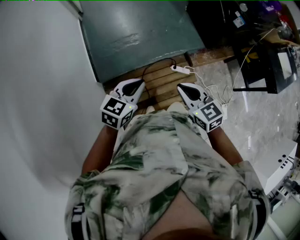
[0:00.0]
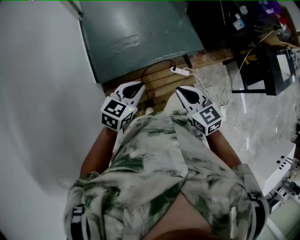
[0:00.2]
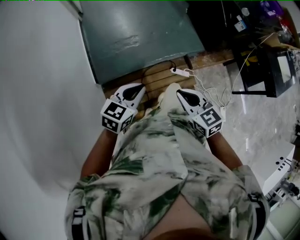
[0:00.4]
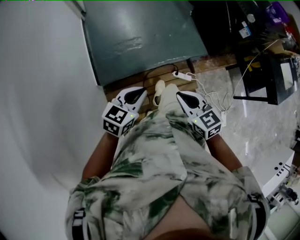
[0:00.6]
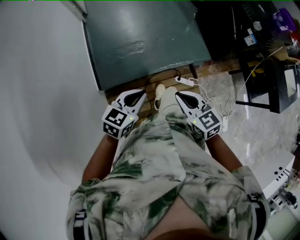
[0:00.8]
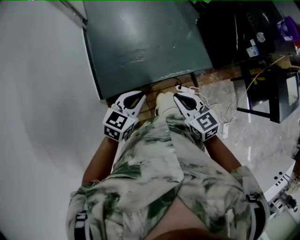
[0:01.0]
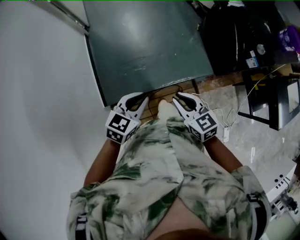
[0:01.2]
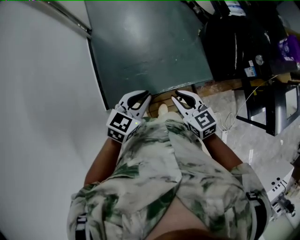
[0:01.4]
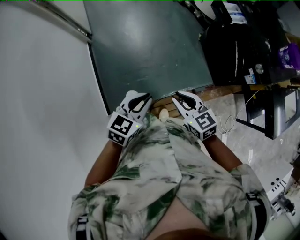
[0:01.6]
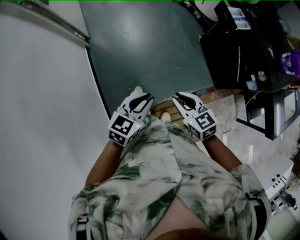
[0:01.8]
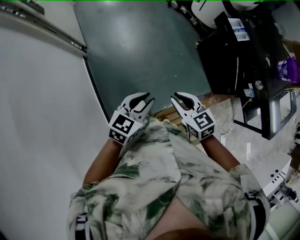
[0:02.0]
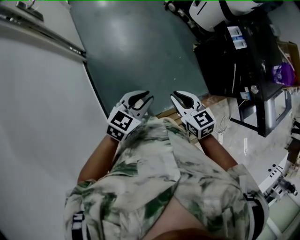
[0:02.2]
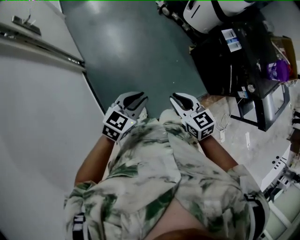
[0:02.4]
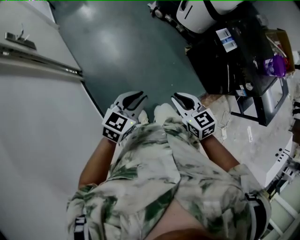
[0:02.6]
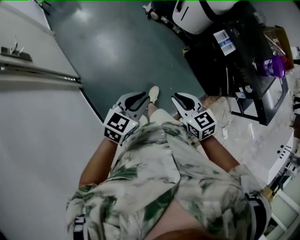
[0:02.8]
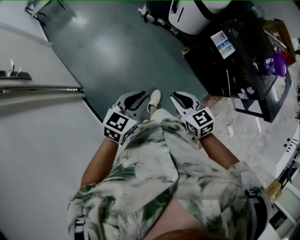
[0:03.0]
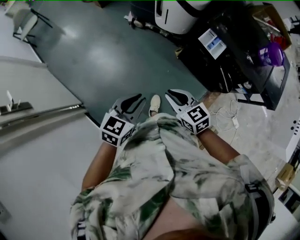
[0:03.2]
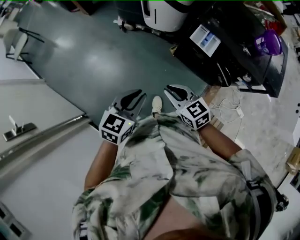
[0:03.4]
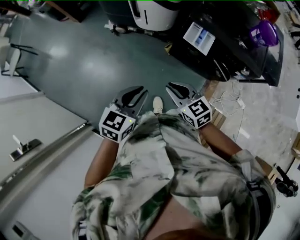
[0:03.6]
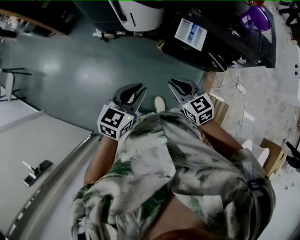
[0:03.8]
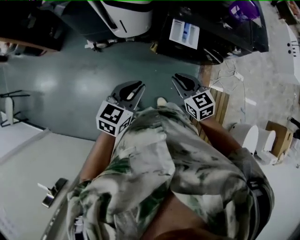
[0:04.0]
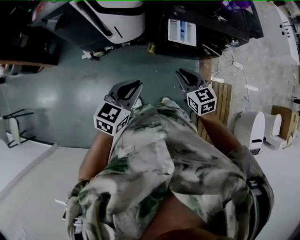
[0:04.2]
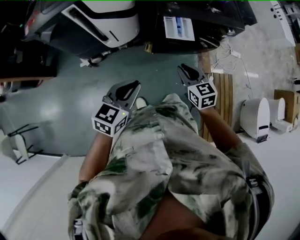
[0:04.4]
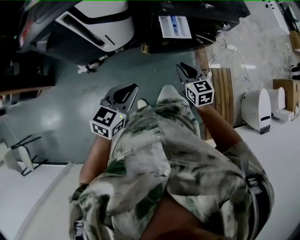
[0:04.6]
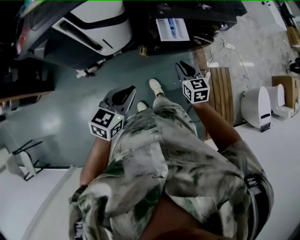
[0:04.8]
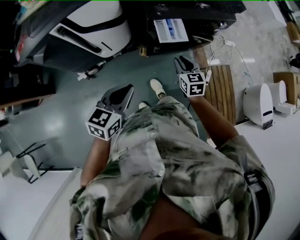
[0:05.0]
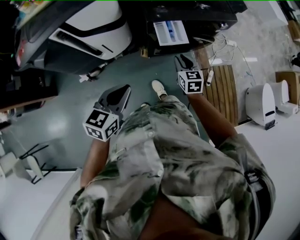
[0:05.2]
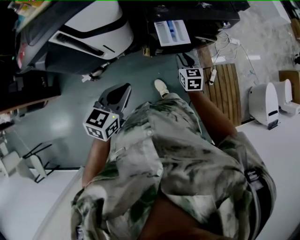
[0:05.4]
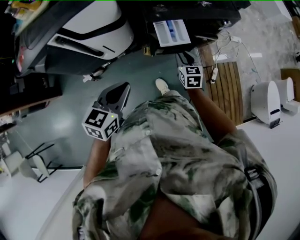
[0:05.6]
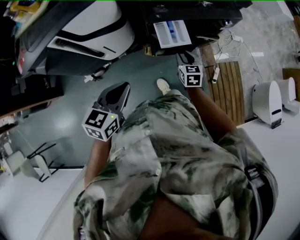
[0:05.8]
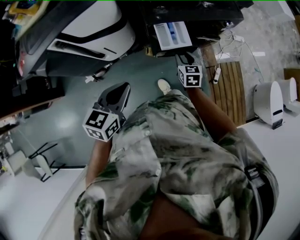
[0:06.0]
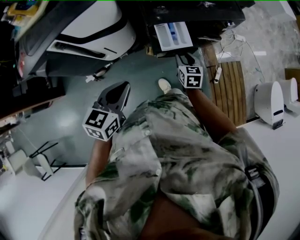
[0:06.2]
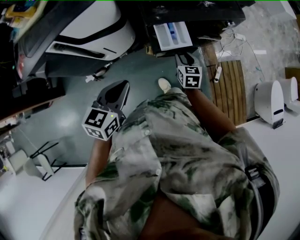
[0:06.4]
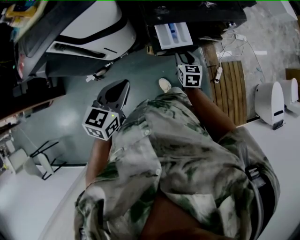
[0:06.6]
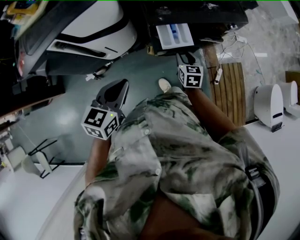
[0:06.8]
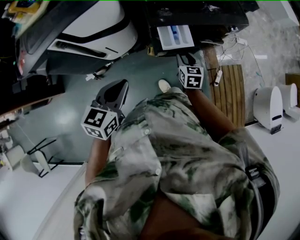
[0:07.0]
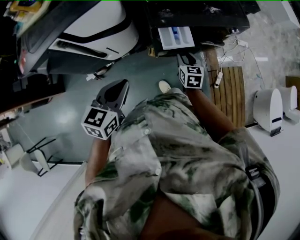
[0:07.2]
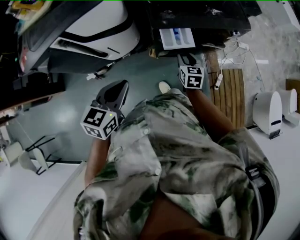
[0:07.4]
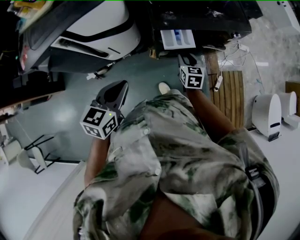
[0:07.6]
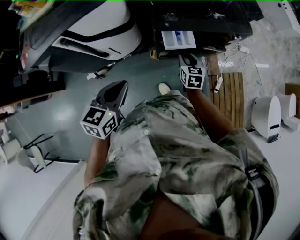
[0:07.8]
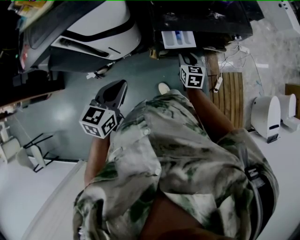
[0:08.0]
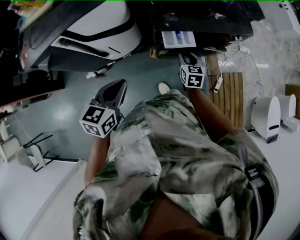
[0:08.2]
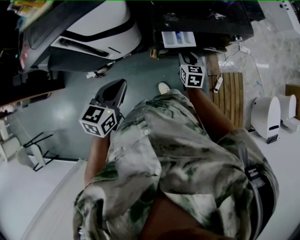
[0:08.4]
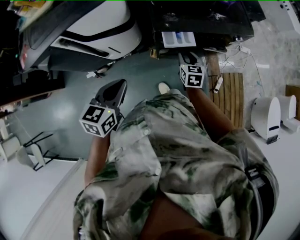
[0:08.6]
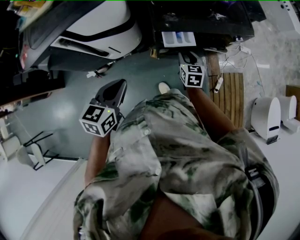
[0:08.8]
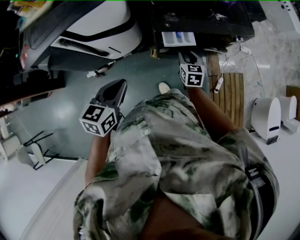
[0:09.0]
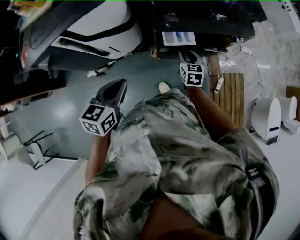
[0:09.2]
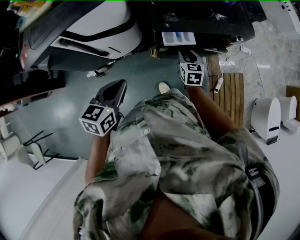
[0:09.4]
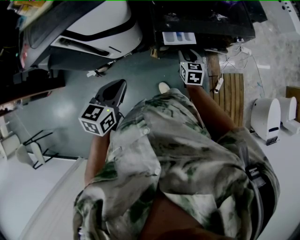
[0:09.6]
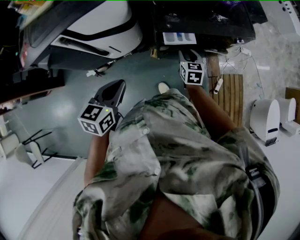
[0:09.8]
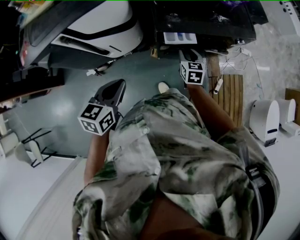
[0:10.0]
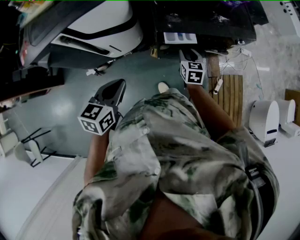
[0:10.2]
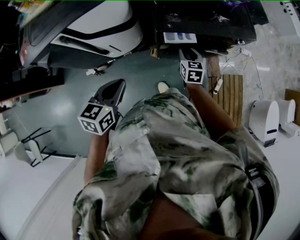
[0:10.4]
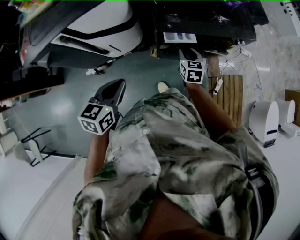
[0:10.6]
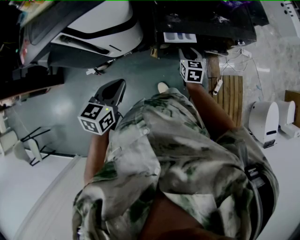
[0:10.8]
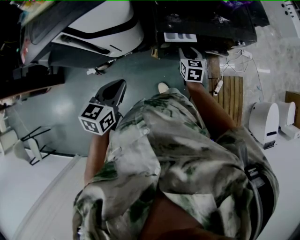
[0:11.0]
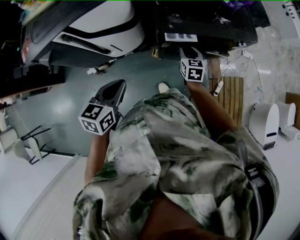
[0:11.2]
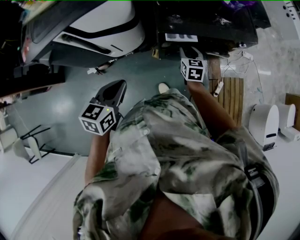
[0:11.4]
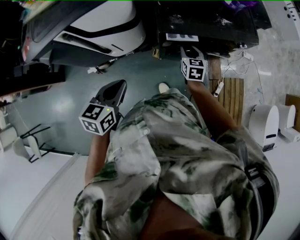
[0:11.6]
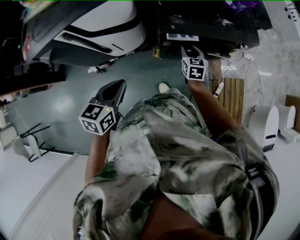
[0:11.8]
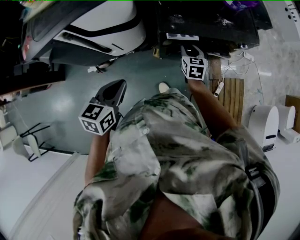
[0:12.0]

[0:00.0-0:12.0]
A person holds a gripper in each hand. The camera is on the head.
0:00.0 to 0:01.6: The grippers both shift forward by some 40 cm.
0:01.6 to 0:03.0: Both grippers are carried forward, approximately 50 cm. The left gripper turns by about 20 degrees. Meanwhile the right gripper swivels roughly 20 degrees.
0:03.0 to 0:04.4: The left gripper shifts by approximately 40 cm, and turns by roughly 50 degrees, while the right gripper ends up about 35 cm from where it was, and turns by some 60 degrees.
0:04.4 to 0:06.0: The right gripper goes some 20 cm forward and downward, and swivels roughly 20 degrees, while the left gripper heads forward, covering approximately 10 cm.
0:06.0 to 0:07.6: The grippers move only a little.
0:07.6 to 0:10.4: The grippers move only a little.
0:10.4 to 0:12.0: The grippers make only small movements.

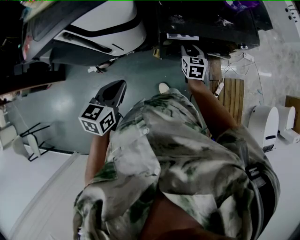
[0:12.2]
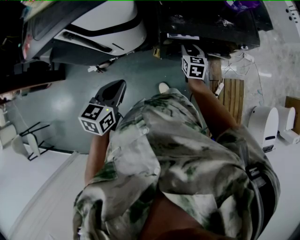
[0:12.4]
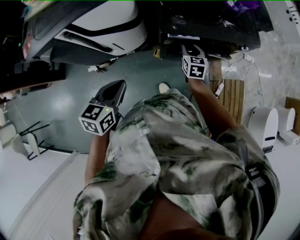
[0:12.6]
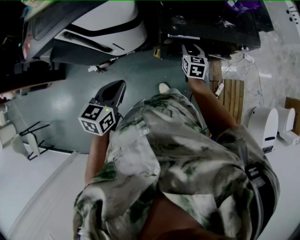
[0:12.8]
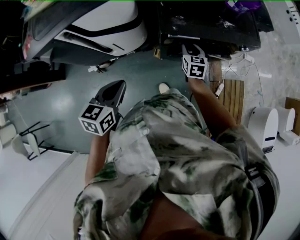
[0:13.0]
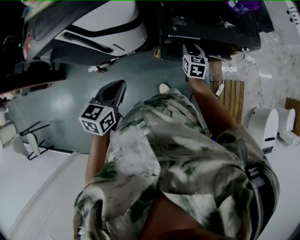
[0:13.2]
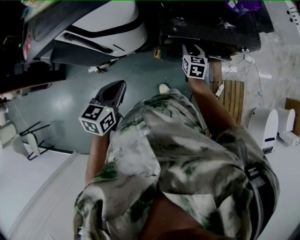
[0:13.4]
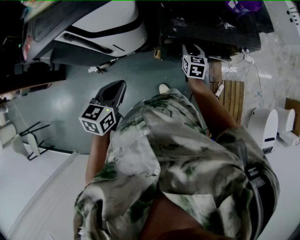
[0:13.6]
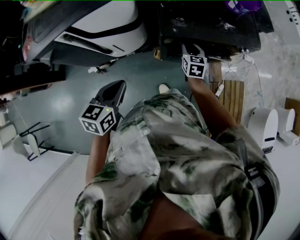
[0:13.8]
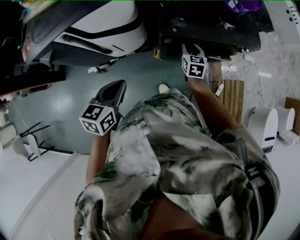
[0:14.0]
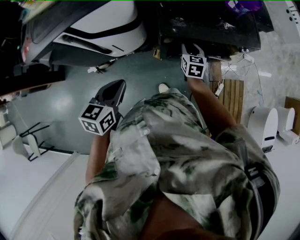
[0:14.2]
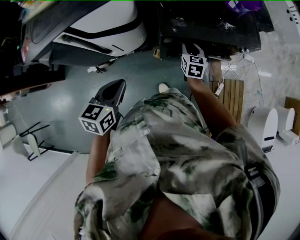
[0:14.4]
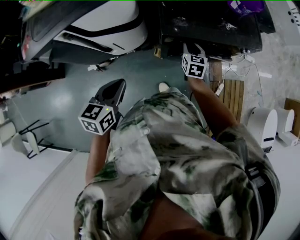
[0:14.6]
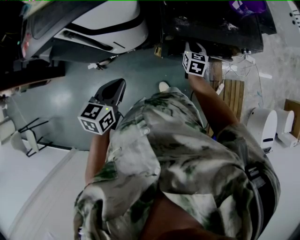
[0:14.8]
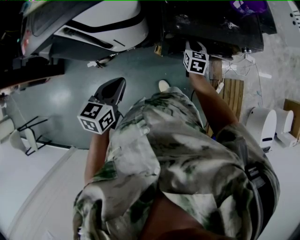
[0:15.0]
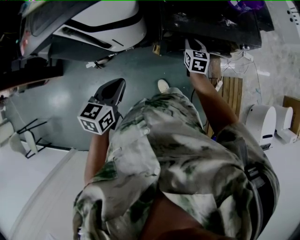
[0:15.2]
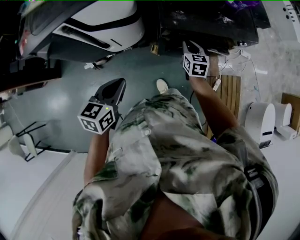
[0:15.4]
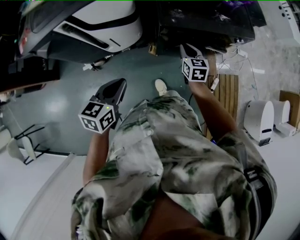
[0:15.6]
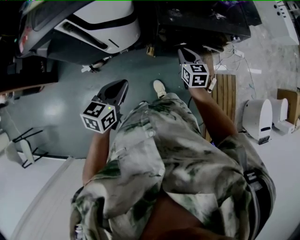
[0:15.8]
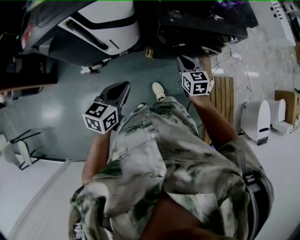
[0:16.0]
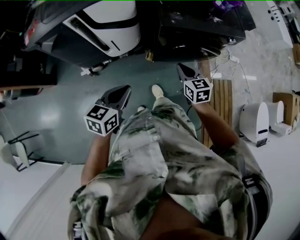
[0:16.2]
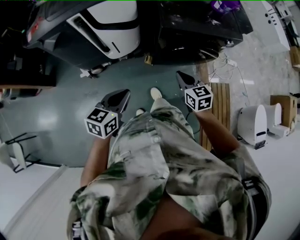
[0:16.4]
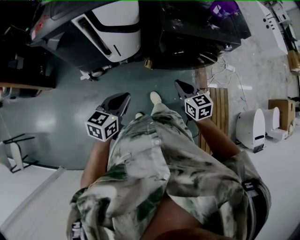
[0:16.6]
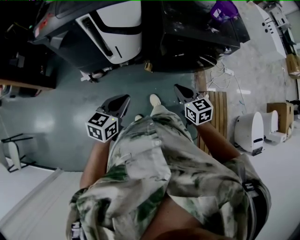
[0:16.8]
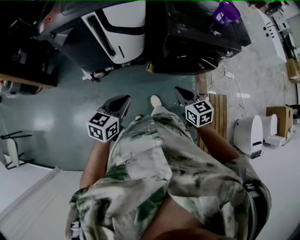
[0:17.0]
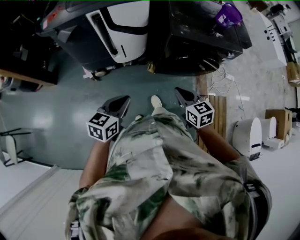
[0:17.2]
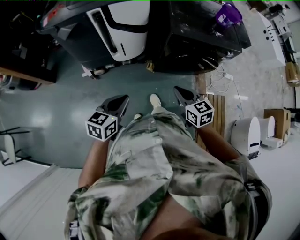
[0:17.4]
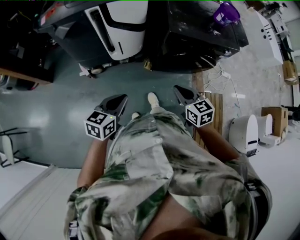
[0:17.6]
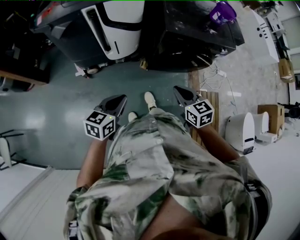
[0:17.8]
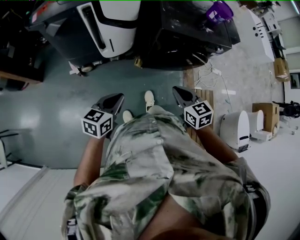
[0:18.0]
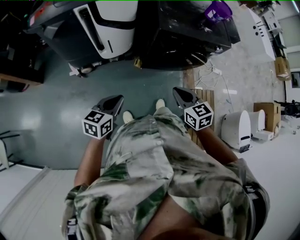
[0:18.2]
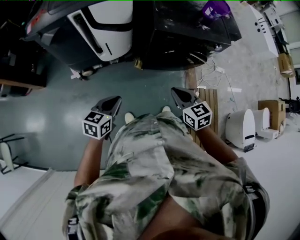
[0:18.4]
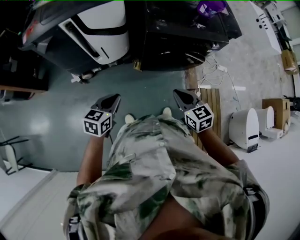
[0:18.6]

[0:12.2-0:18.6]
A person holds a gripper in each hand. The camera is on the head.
0:12.2 to 0:15.4: The grippers stay close to where they were, moving slightly.
0:15.4 to 0:17.0: The left gripper shifts approximately 20 cm backward; the right gripper is displaced backward by some 35 cm, and rotates roughly 20 degrees.
0:17.0 to 0:18.6: The grippers both shift to the right by some 10 cm.

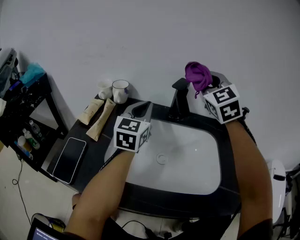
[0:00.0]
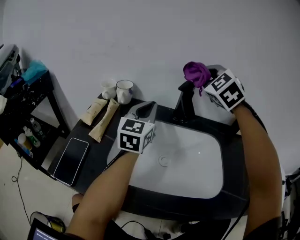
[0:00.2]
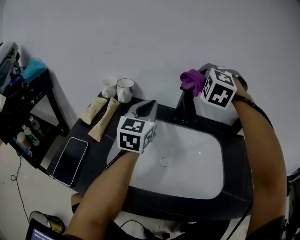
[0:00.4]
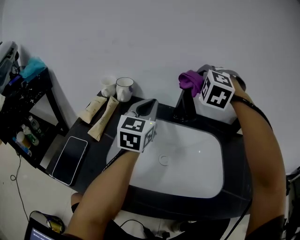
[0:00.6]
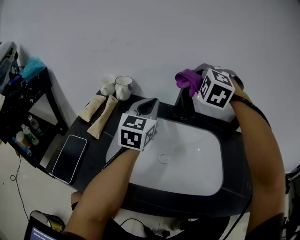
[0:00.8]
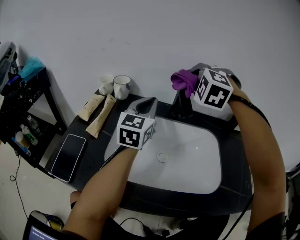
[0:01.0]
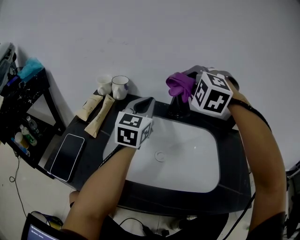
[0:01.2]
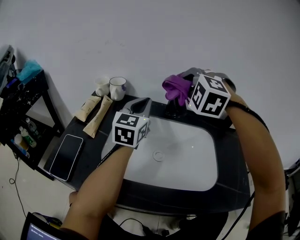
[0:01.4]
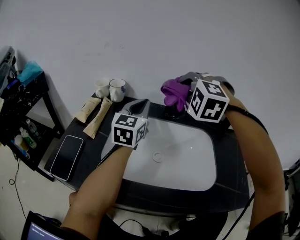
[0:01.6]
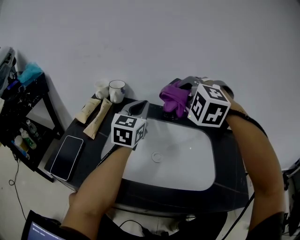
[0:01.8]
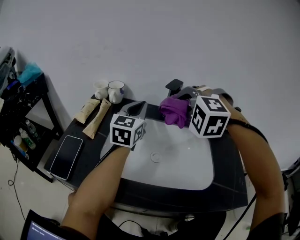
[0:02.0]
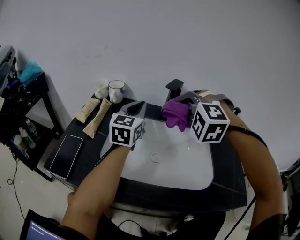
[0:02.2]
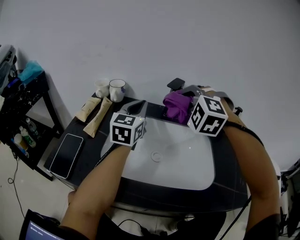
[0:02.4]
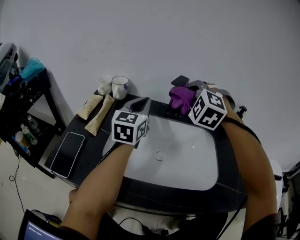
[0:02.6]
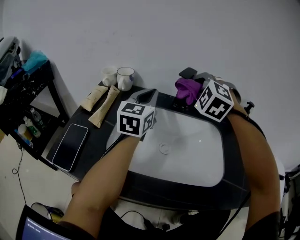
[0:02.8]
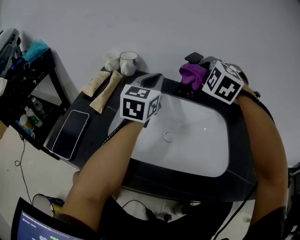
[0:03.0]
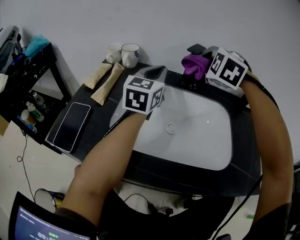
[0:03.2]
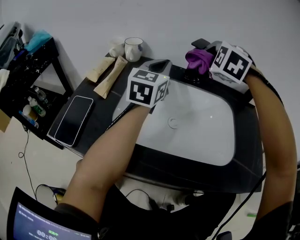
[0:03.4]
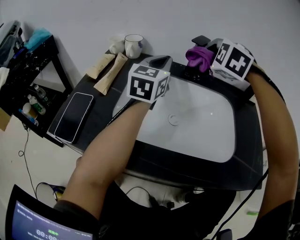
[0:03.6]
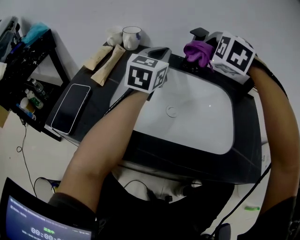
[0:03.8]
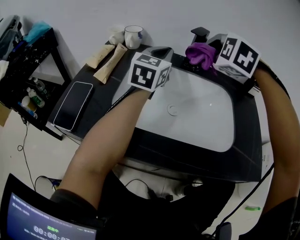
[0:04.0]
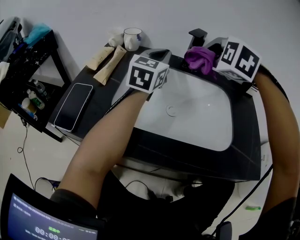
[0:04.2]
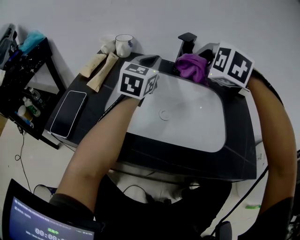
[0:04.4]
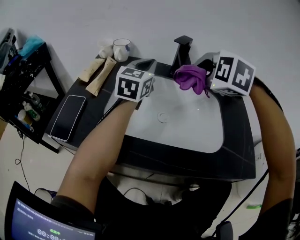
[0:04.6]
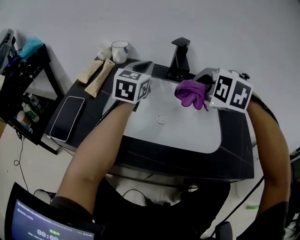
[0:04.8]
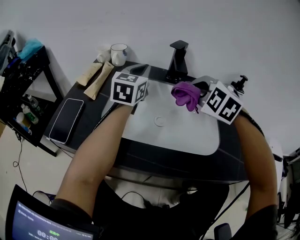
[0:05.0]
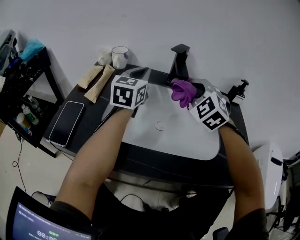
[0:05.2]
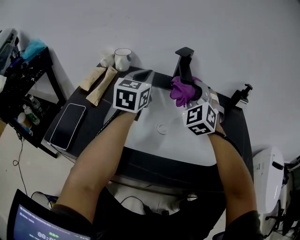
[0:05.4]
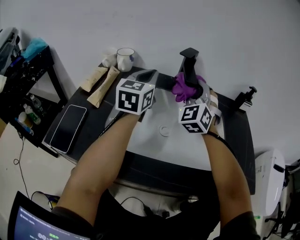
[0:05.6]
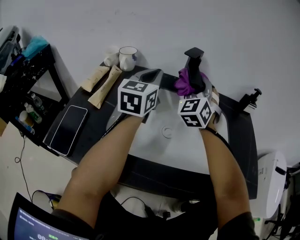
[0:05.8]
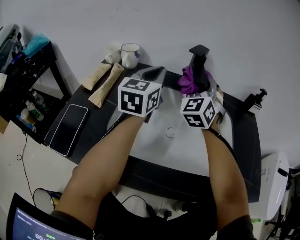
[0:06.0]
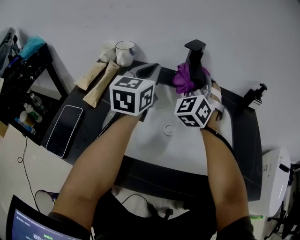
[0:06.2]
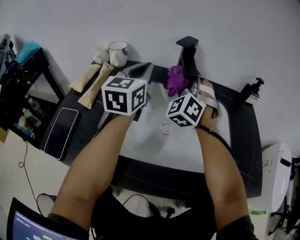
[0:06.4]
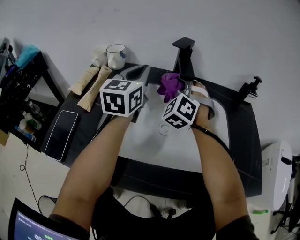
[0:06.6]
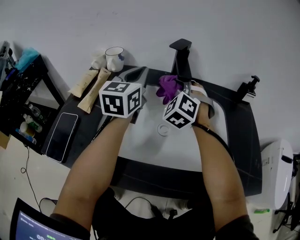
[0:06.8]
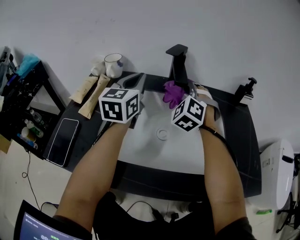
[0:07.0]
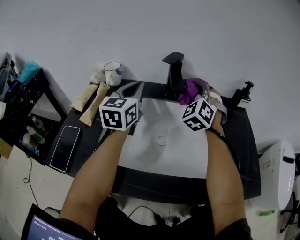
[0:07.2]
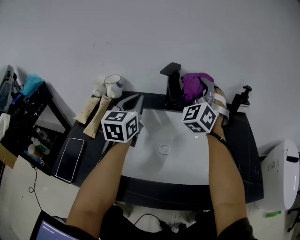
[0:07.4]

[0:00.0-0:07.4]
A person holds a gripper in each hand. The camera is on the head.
0:00.0 to 0:01.4: The right gripper is displaced downward and to the left by approximately 10 cm, and turns by some 50 degrees.
0:01.4 to 0:03.0: The right gripper moves approximately 5 cm backward and comes back.
0:03.0 to 0:04.4: The right gripper moves backward, about 10 cm.
0:04.4 to 0:06.0: The right gripper is displaced forward by approximately 10 cm, and tilts its fingers roughly 50 degrees upward.
0:06.0 to 0:07.4: The right gripper travels to the right and upward by about 10 cm.
